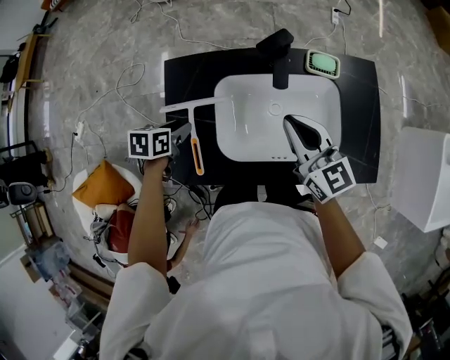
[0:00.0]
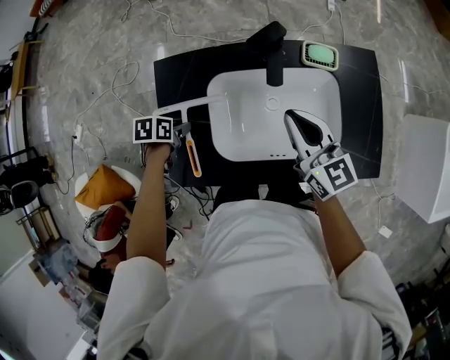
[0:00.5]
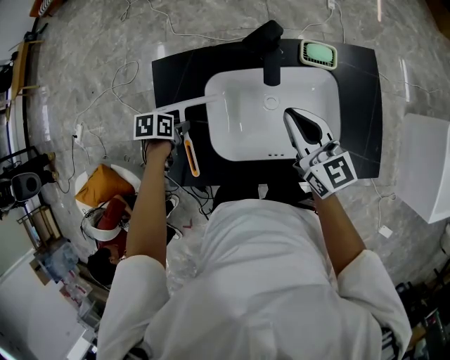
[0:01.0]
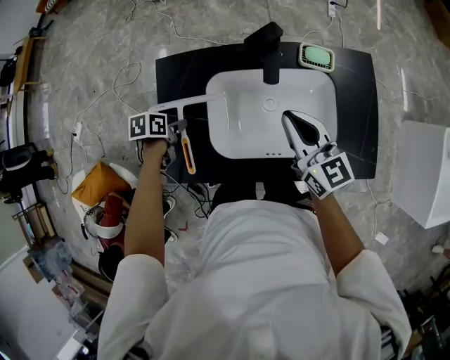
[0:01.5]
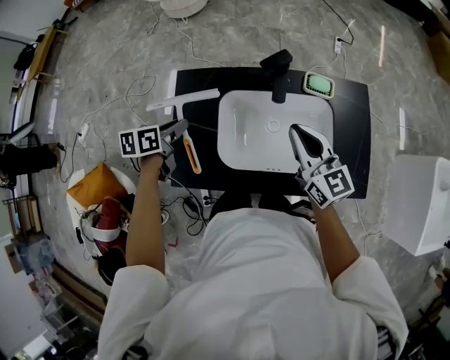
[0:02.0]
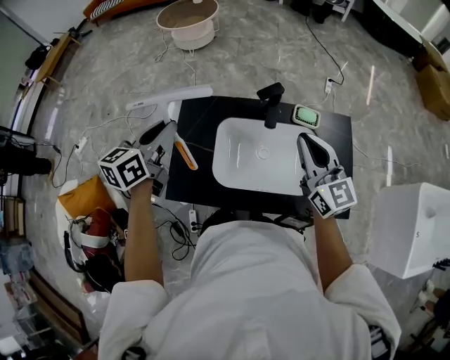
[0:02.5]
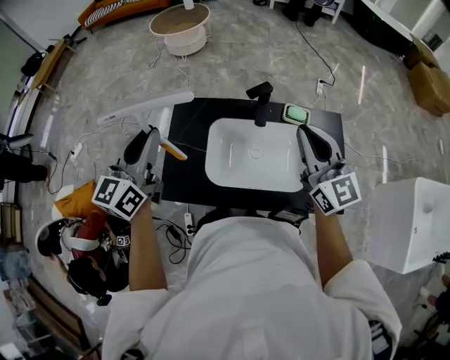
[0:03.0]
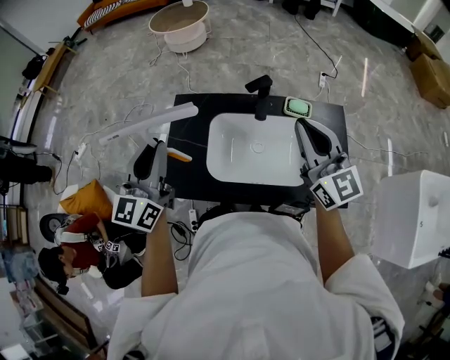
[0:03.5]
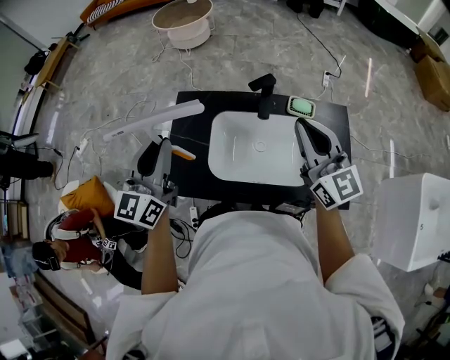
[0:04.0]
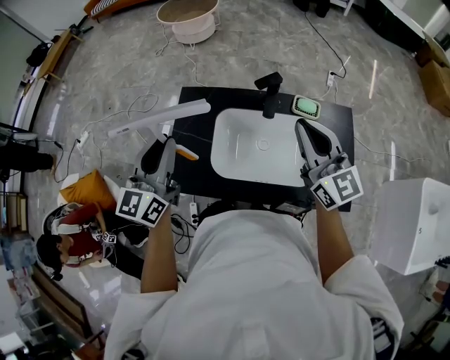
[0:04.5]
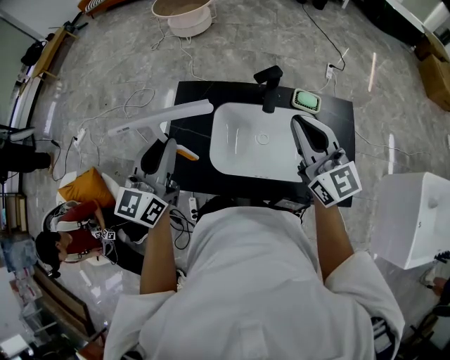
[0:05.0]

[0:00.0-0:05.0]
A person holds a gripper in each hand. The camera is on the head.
0:00.0 to 0:02.5: The left gripper heads upward, covering about 25 cm, and points its fingers about 40 degrees further upward. Meanwhile the right gripper moves upward and to the right, about 15 cm.
0:02.5 to 0:05.0: The left gripper is displaced backward by roughly 10 cm, and changes its angle by roughly 20 degrees.

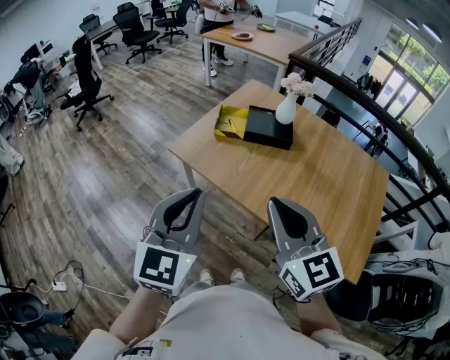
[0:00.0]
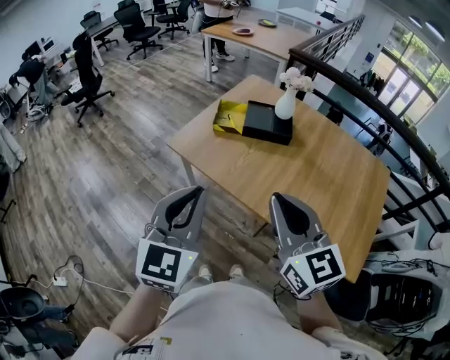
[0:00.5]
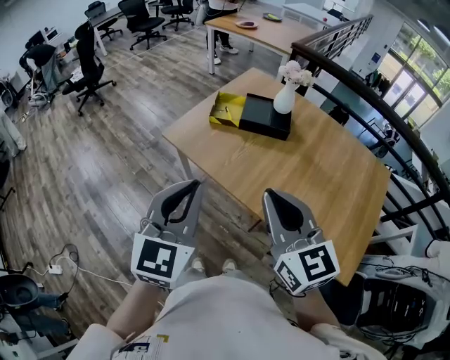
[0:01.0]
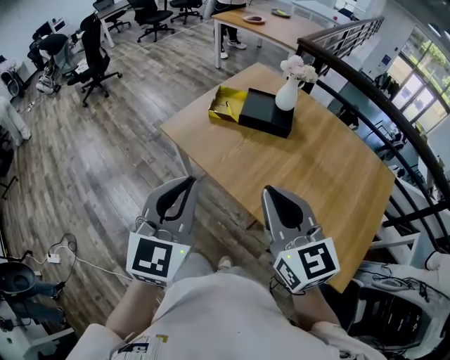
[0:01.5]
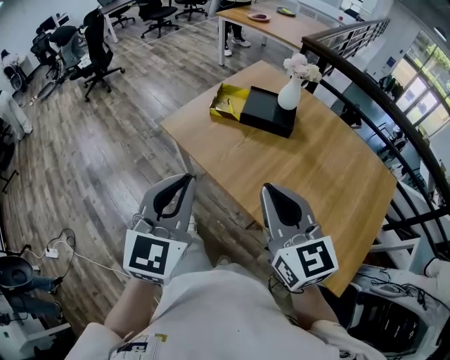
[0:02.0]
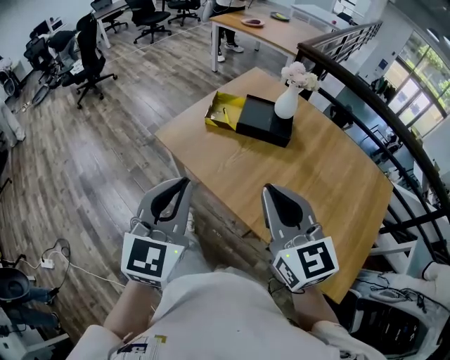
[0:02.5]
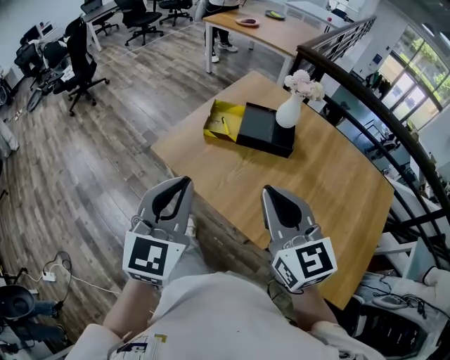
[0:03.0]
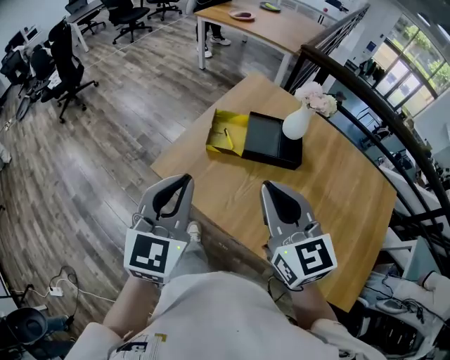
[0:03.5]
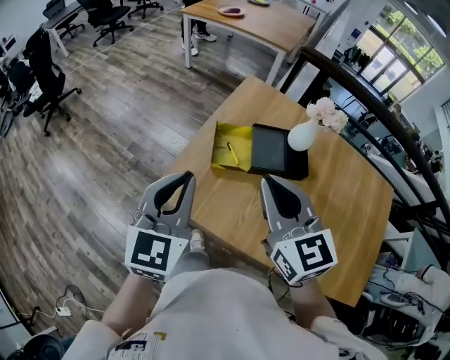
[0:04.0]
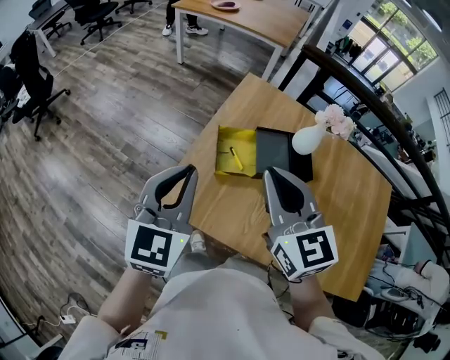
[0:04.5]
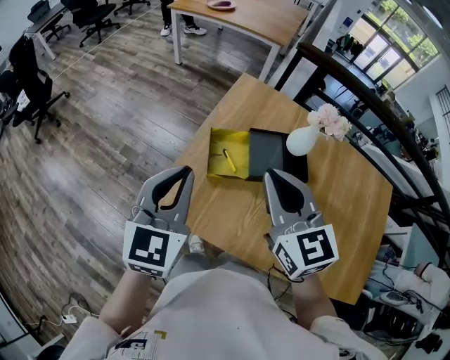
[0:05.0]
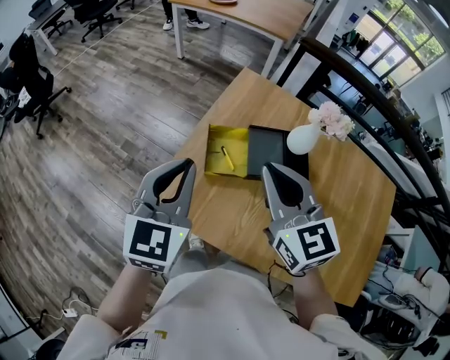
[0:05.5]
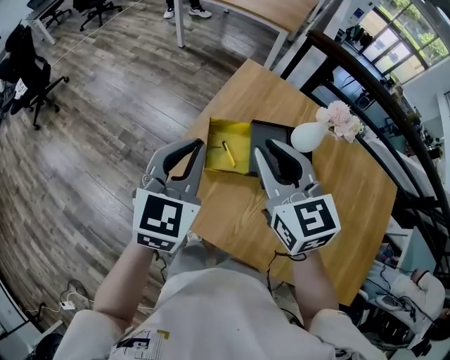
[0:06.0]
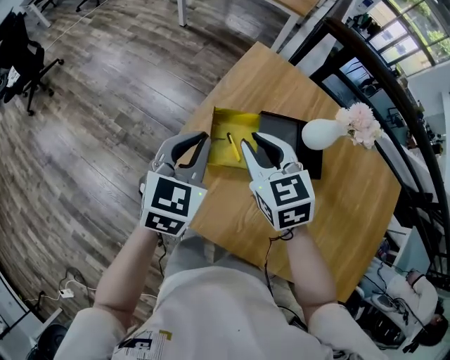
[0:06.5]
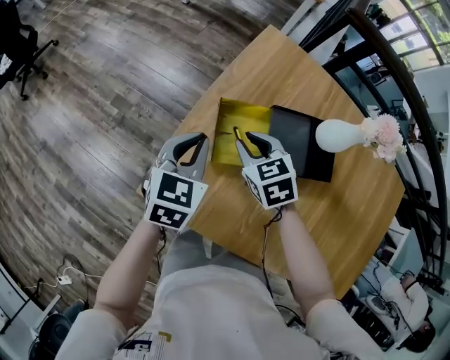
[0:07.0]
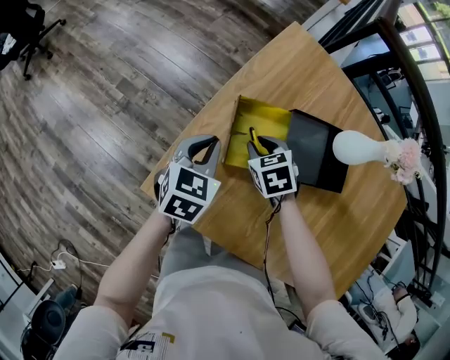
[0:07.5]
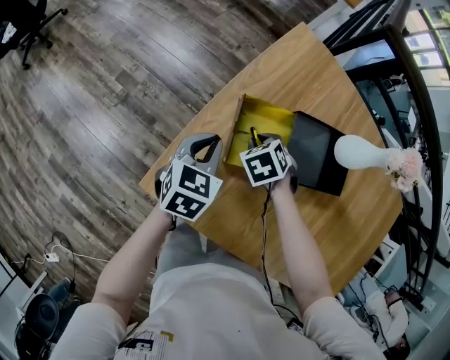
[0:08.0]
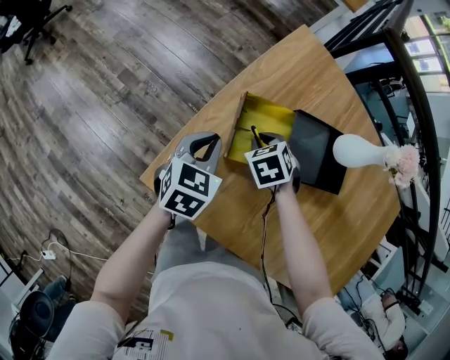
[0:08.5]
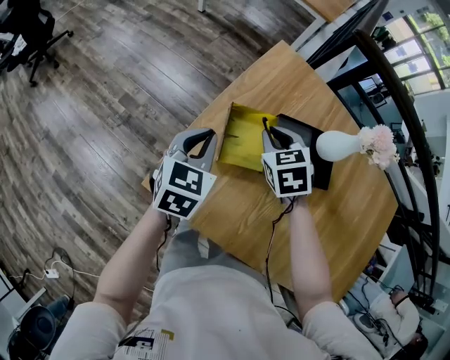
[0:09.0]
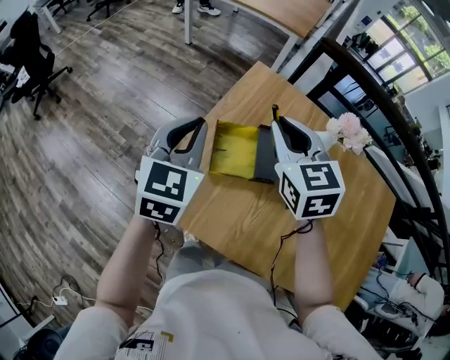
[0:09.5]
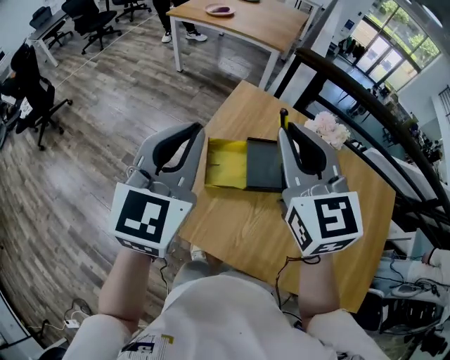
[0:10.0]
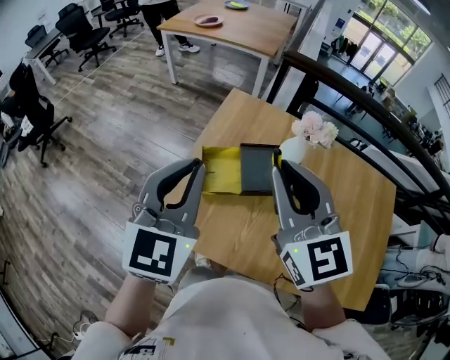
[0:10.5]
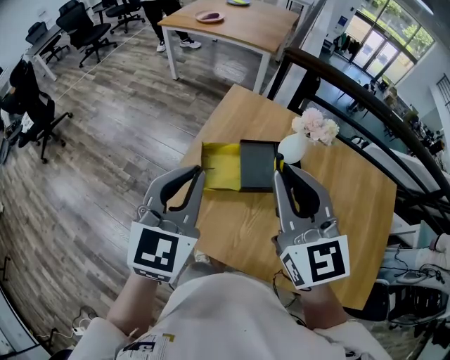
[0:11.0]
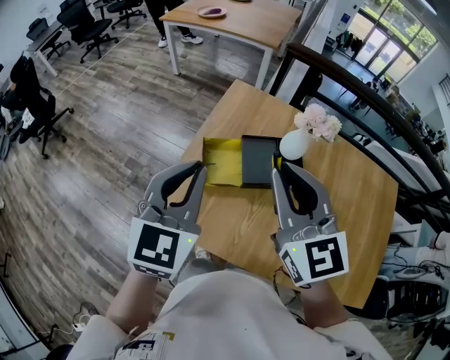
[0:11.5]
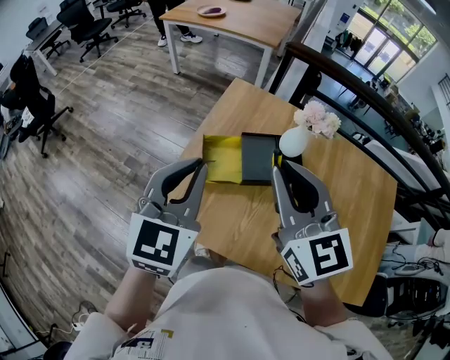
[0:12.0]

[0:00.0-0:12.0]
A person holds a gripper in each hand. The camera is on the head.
0:00.0 to 0:02.0: The left gripper shifts roughly 10 cm to the right; the right gripper travels to the right and downward by roughly 10 cm.
0:02.0 to 0:04.0: The two grippers go roughly 35 cm forward.
0:04.0 to 0:06.0: Both grippers move forward, some 15 cm.
0:06.0 to 0:08.0: Both grippers travel together downward, some 35 cm. The left gripper rotates approximately 30 degrees. The right gripper tips its fingers downward by approximately 60 degrees.
0:08.0 to 0:10.0: The grippers both shift upward by some 50 cm. The left gripper points its fingers approximately 40 degrees further upward; the right gripper points its fingers some 70 degrees further upward.
0:10.0 to 0:12.0: The two grippers go about 10 cm backward.

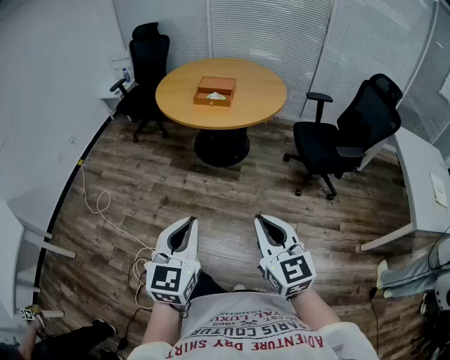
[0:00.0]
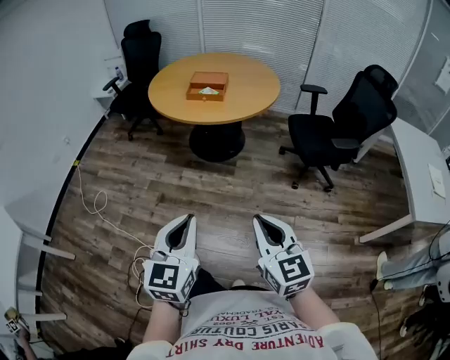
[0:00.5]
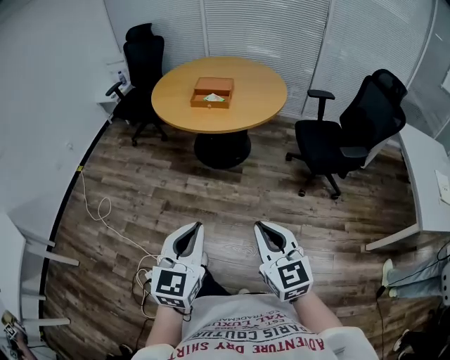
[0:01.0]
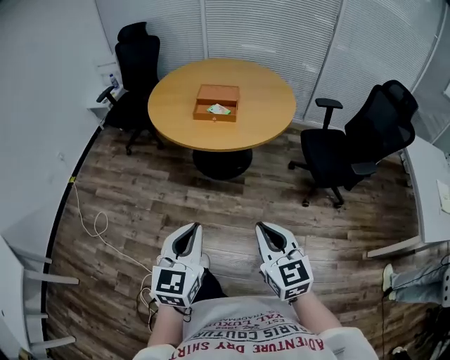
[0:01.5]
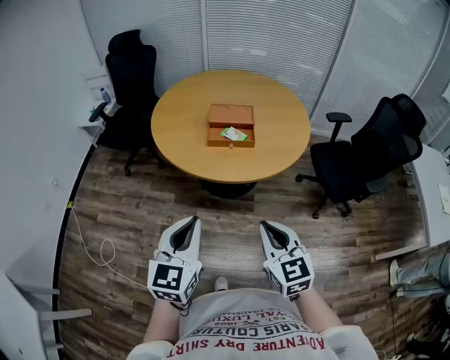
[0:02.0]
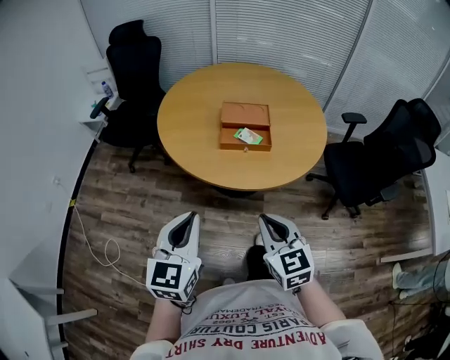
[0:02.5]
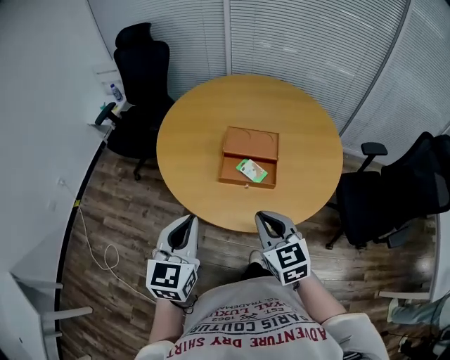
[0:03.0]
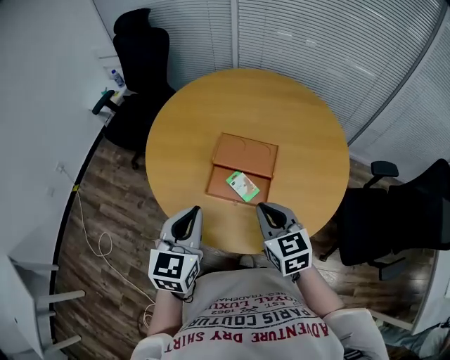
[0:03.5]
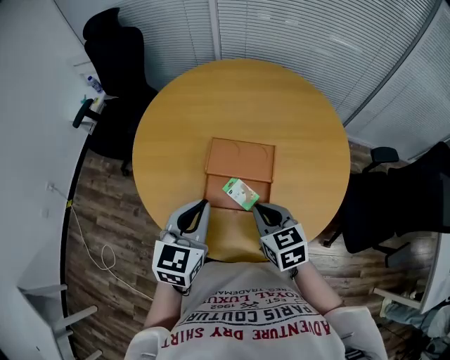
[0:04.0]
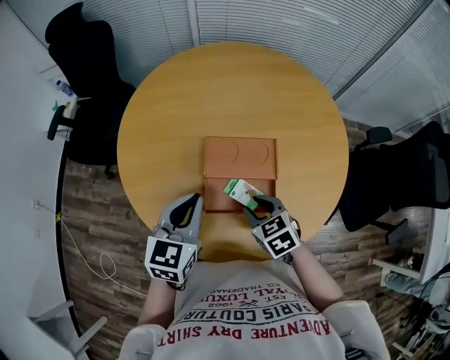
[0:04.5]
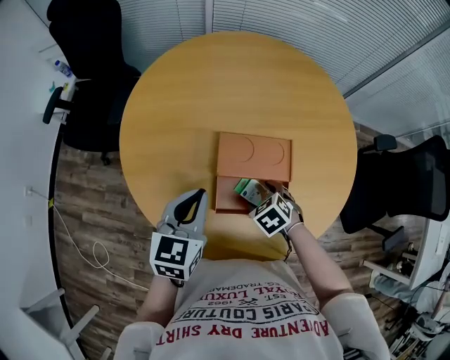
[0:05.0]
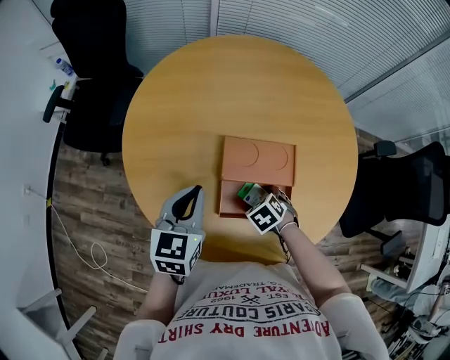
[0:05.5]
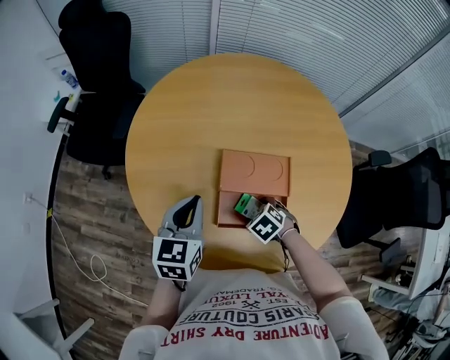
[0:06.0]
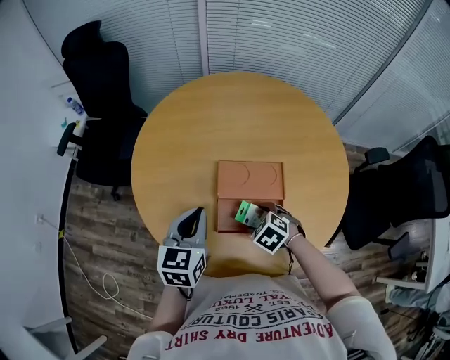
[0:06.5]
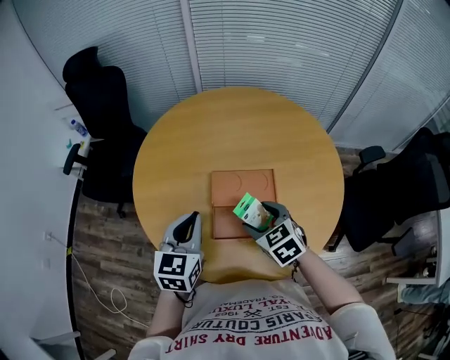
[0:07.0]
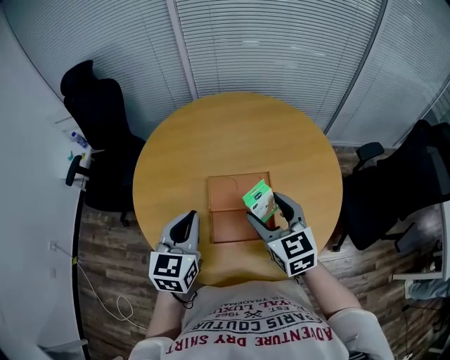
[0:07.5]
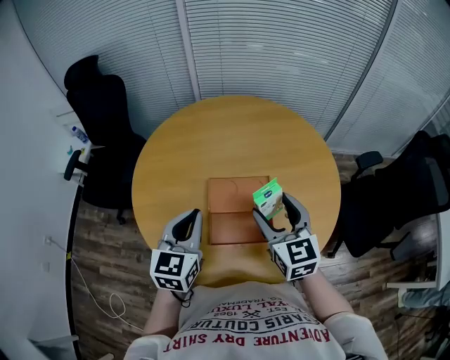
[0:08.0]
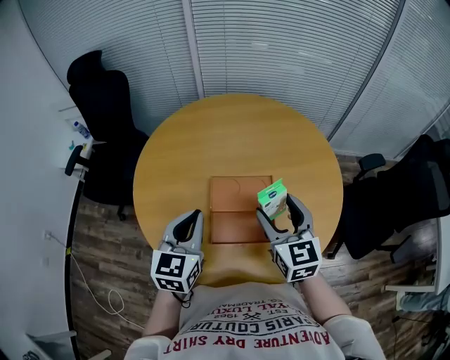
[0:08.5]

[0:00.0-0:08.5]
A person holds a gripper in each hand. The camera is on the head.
0:00.0 to 0:02.0: Both grippers are carried forward and to the left, about 40 cm.
0:02.0 to 0:04.0: The two grippers travel together, forward, approximately 50 cm. The right gripper swivels roughly 20 degrees.
0:04.0 to 0:06.5: The right gripper heads downward, covering roughly 10 cm, points its fingers about 30 degrees further downward, and opens its fingers. Meanwhile the left gripper shifts by some 10 cm.
0:06.5 to 0:08.5: The left gripper shifts about 5 cm upward, while the right gripper travels upward by roughly 25 cm, and tilts its fingers about 50 degrees upward.

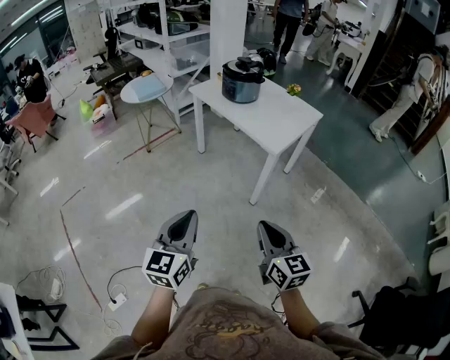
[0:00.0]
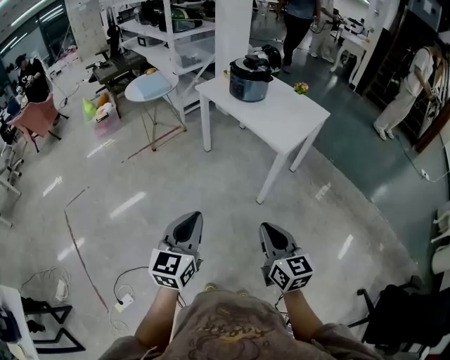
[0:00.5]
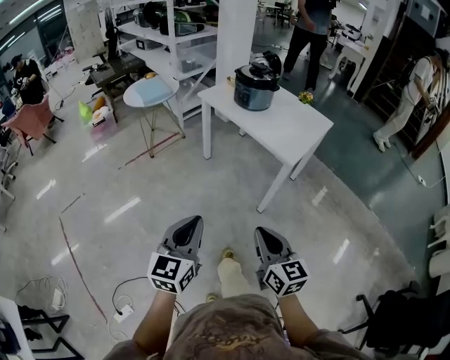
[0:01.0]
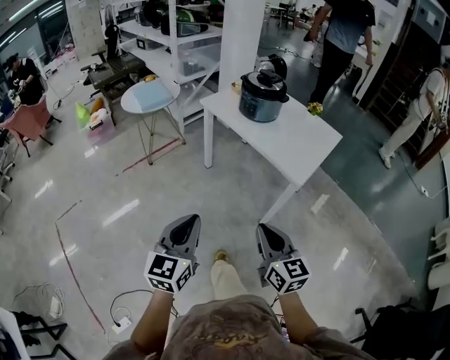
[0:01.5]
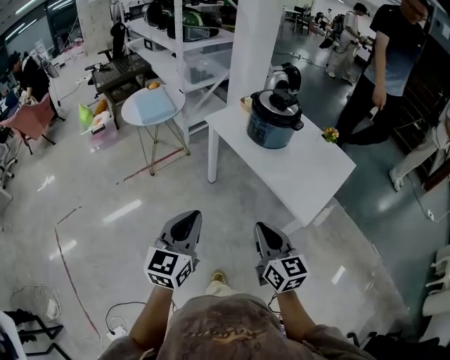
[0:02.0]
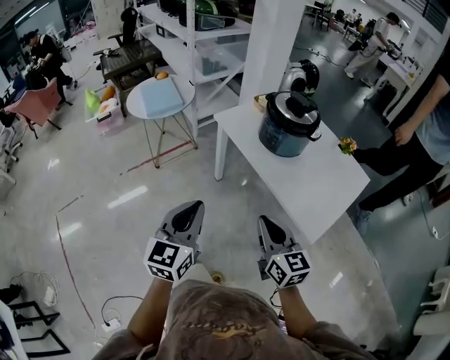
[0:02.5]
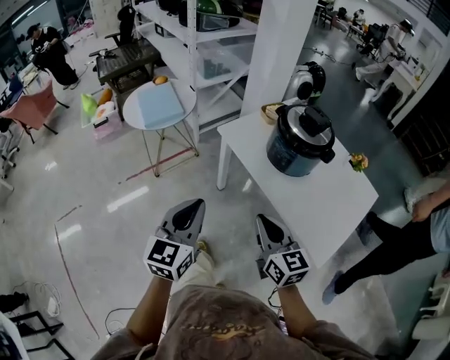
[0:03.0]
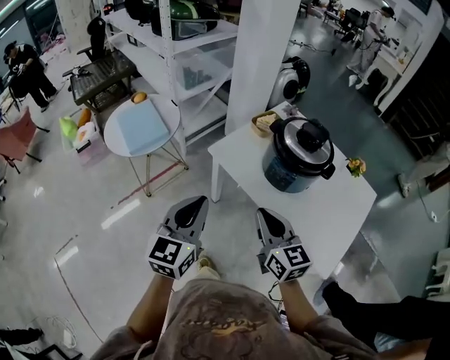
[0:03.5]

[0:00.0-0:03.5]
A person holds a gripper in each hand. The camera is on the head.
0:00.0 to 0:02.0: The grippers both shift forward by roughly 35 cm.
0:02.0 to 0:03.5: Both grippers travel together forward, some 35 cm.
